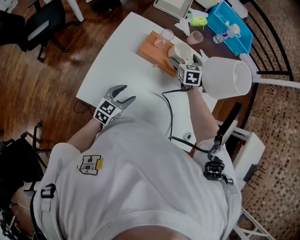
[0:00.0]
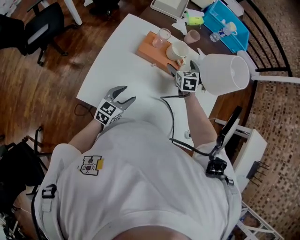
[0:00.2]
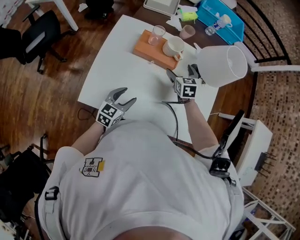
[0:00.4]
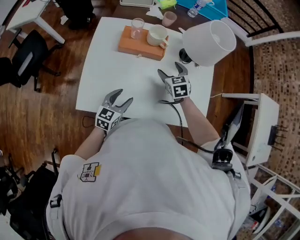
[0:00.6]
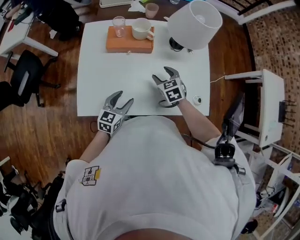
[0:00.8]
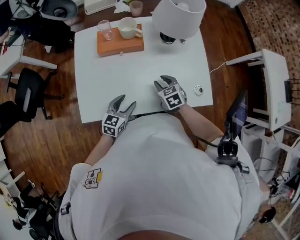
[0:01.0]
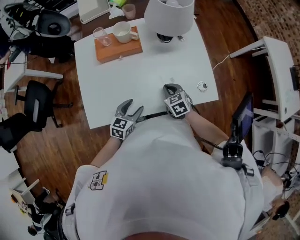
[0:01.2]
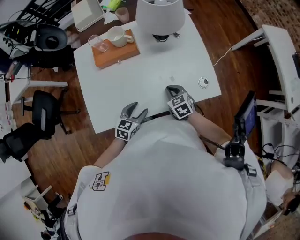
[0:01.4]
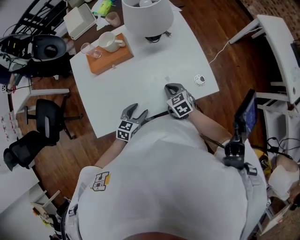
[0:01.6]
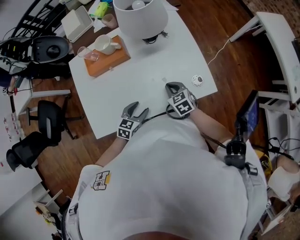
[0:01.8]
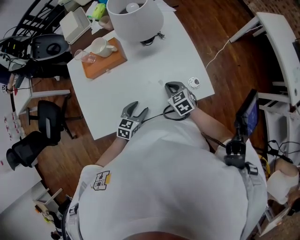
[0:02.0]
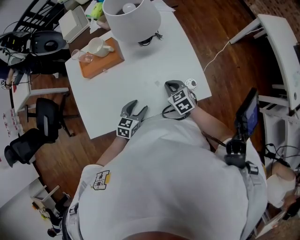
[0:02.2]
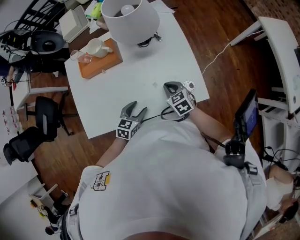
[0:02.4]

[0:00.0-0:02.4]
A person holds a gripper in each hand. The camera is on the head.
0:00.0 to 0:01.2: The left gripper is displaced to the right and backward by approximately 10 cm, and swivels approximately 20 degrees; the right gripper goes about 35 cm backward and to the right, and closes.
0:01.2 to 0:02.4: The grippers both shift to the right by roughly 10 cm.

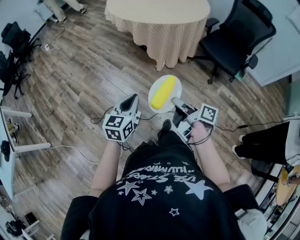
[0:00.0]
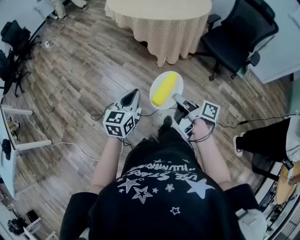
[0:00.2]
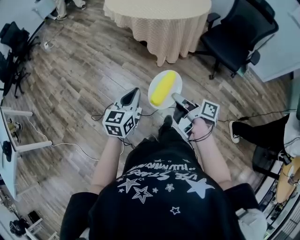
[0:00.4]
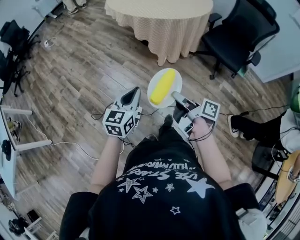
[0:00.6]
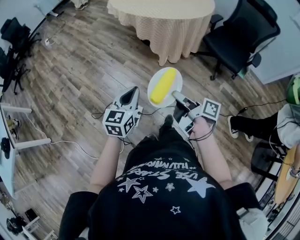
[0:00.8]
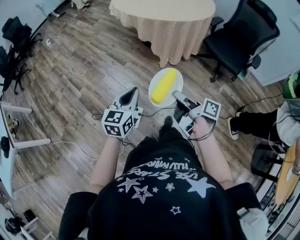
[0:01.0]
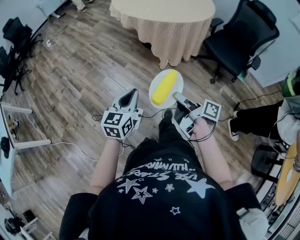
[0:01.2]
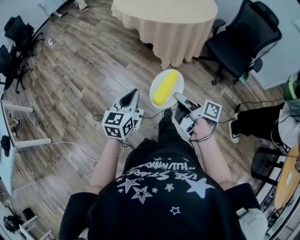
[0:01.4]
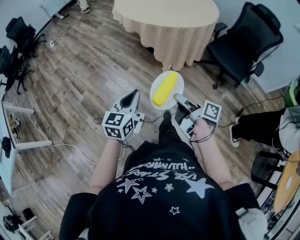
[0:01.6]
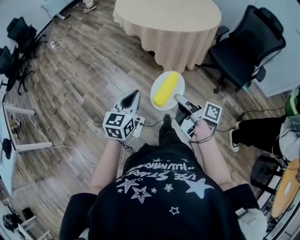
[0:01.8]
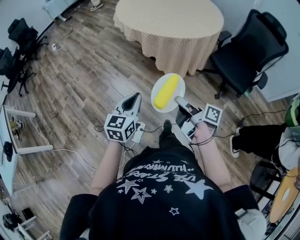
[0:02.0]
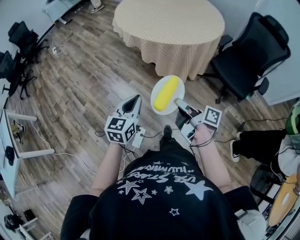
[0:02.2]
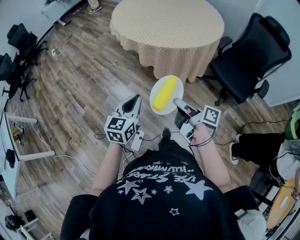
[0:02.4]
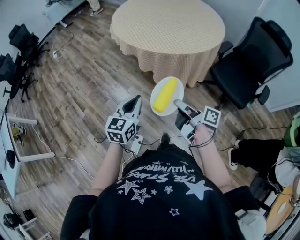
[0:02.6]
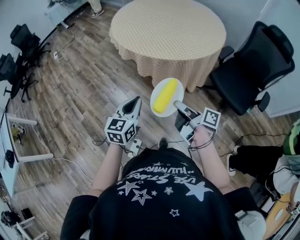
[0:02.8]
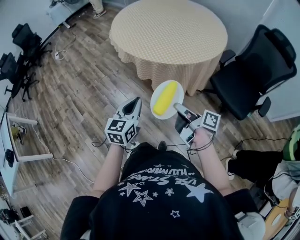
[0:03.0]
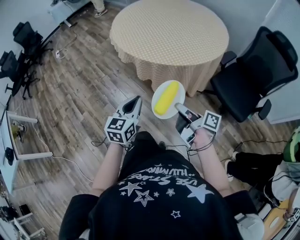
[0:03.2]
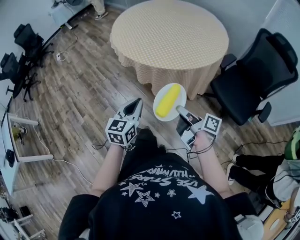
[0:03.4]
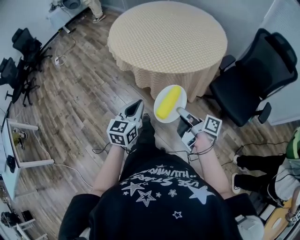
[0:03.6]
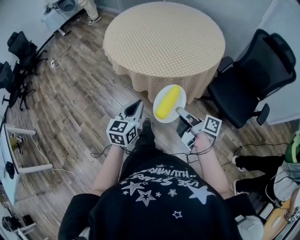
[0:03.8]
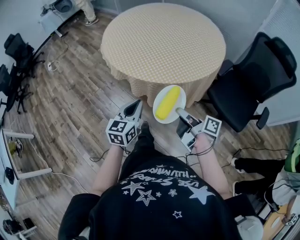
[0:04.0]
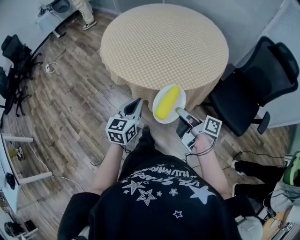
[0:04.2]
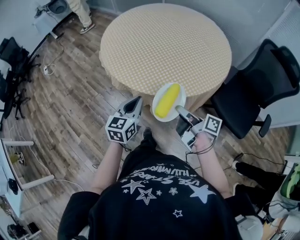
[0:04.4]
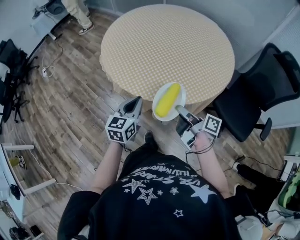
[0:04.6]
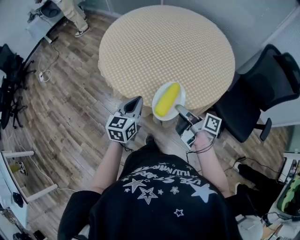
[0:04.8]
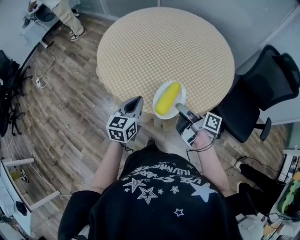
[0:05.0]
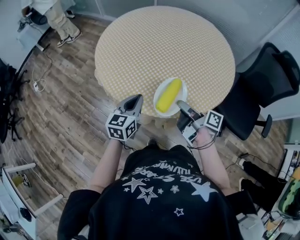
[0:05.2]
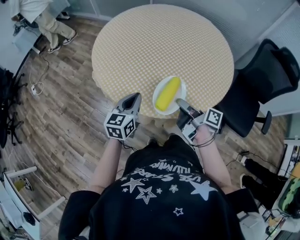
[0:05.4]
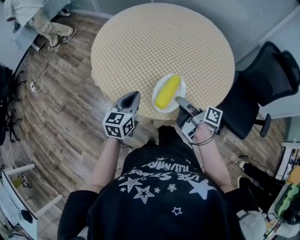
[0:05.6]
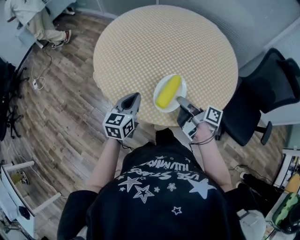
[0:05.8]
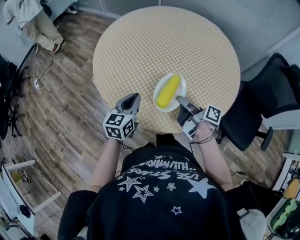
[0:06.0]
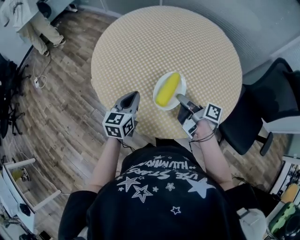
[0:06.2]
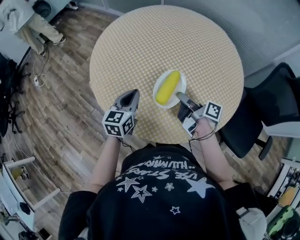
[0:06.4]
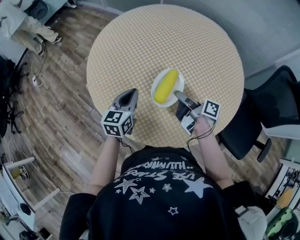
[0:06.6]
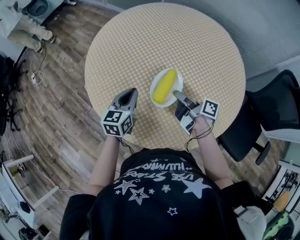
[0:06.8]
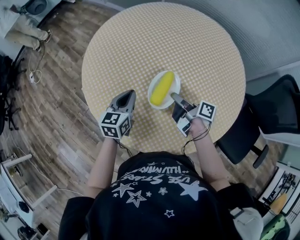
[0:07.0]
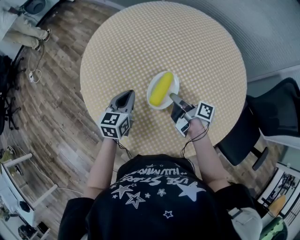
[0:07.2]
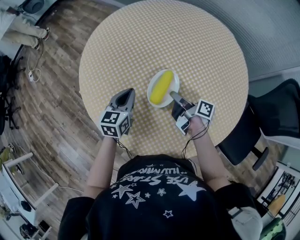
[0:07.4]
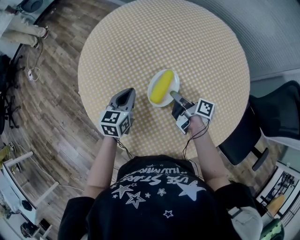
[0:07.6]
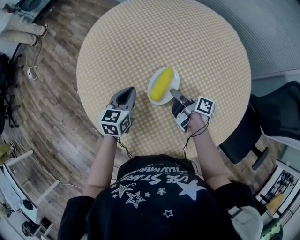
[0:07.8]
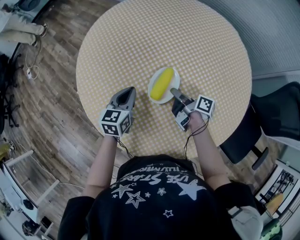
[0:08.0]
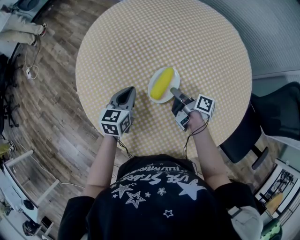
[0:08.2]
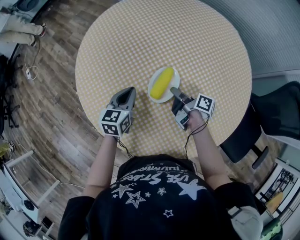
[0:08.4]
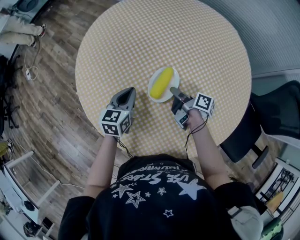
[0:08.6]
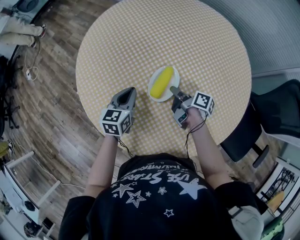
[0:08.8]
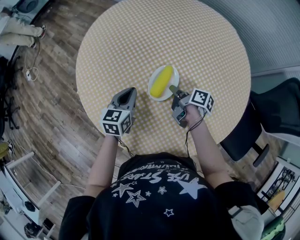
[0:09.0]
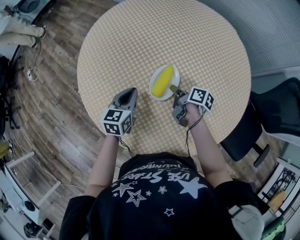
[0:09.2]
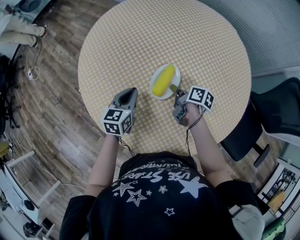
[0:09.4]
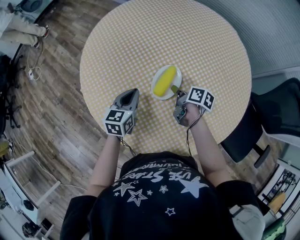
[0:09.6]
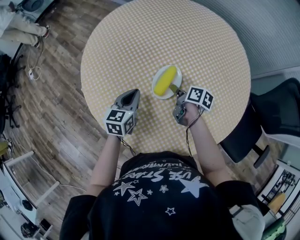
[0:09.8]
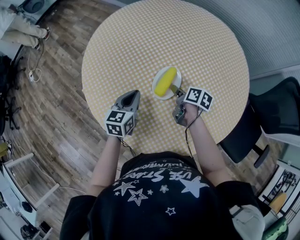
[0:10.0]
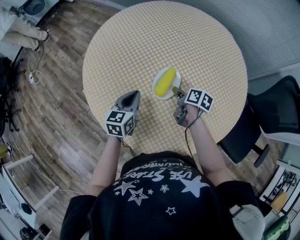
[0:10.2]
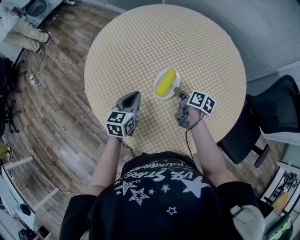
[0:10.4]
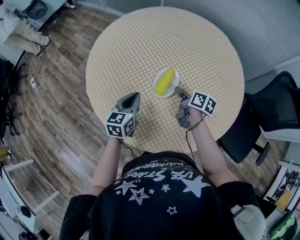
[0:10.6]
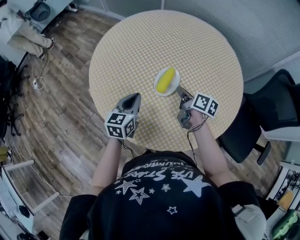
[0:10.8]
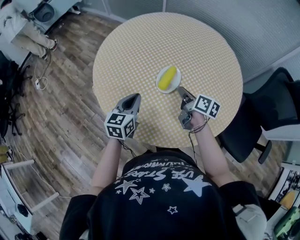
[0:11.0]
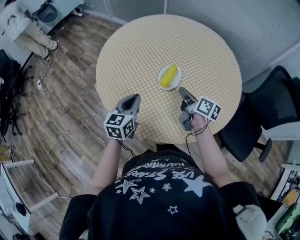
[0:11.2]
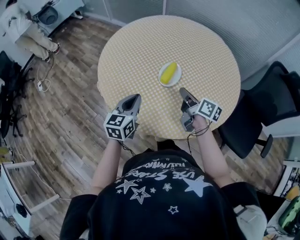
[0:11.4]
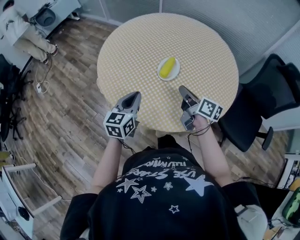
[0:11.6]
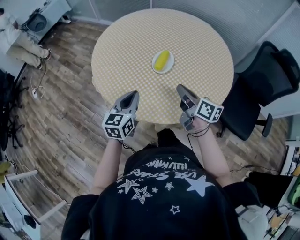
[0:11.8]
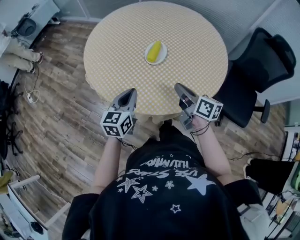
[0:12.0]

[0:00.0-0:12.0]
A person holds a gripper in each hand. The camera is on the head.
0:00.0 to 0:01.6: The left gripper ends up about 5 cm from where it was.
0:01.6 to 0:03.0: The left gripper shifts by approximately 25 cm.
0:03.0 to 0:04.4: The left gripper ends up roughly 25 cm from where it was.
0:04.4 to 0:06.0: The left gripper shifts by some 25 cm.
0:06.0 to 0:07.6: The left gripper shifts by some 20 cm.
0:10.4 to 0:12.0: The left gripper ends up some 20 cm from where it was.

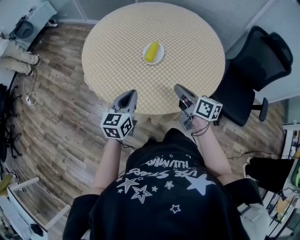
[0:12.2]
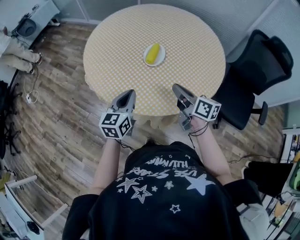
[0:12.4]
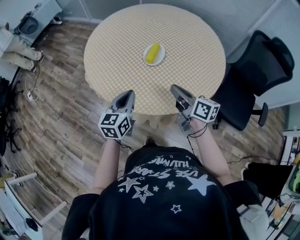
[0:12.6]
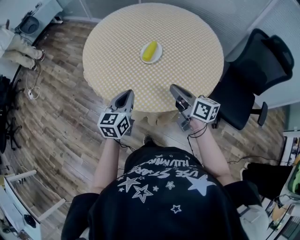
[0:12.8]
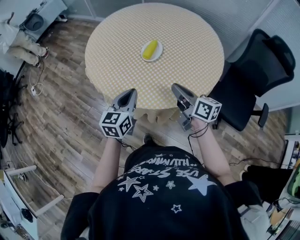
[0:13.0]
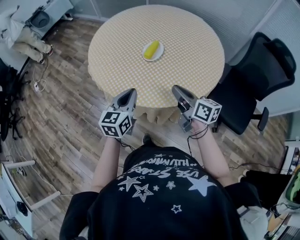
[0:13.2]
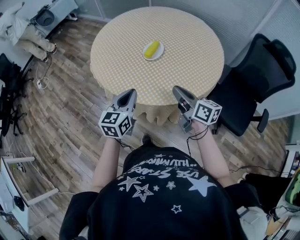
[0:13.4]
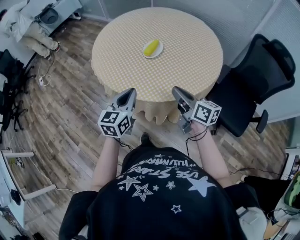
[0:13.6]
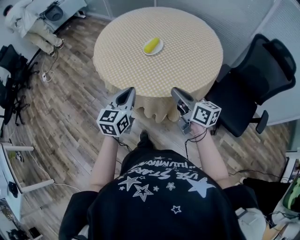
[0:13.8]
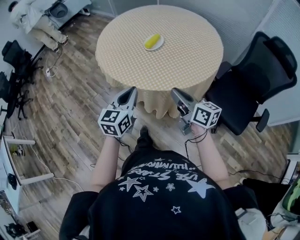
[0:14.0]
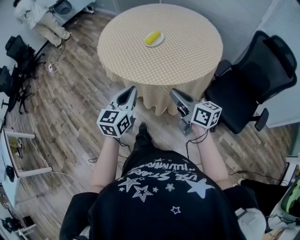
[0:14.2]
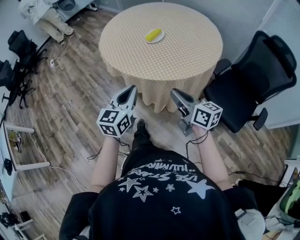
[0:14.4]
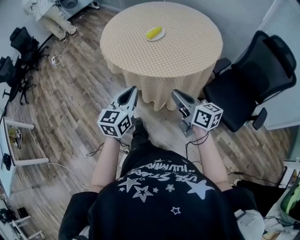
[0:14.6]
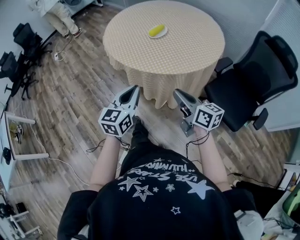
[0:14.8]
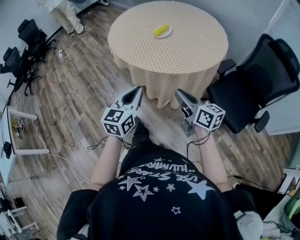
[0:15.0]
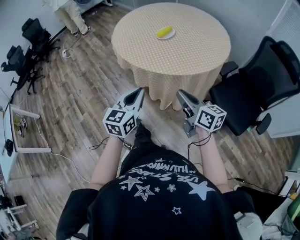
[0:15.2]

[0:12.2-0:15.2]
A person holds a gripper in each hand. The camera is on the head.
0:12.2 to 0:13.8: The left gripper shifts by about 15 cm.
0:13.8 to 0:15.2: The left gripper shifts by about 20 cm.

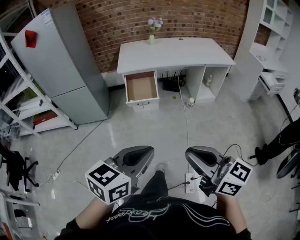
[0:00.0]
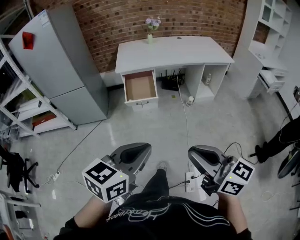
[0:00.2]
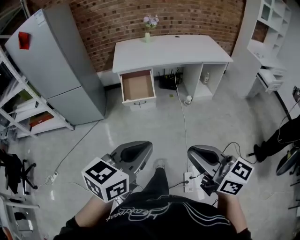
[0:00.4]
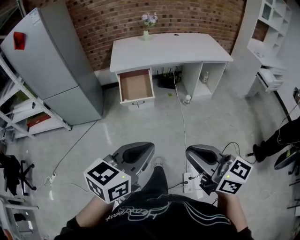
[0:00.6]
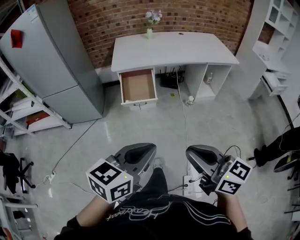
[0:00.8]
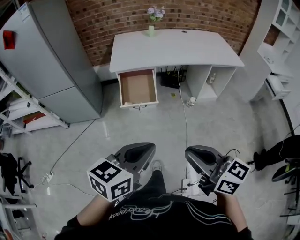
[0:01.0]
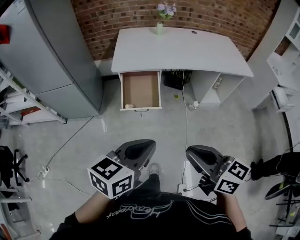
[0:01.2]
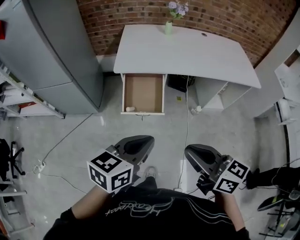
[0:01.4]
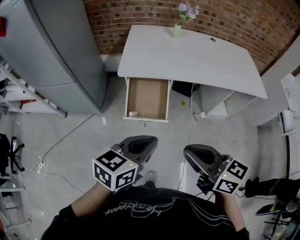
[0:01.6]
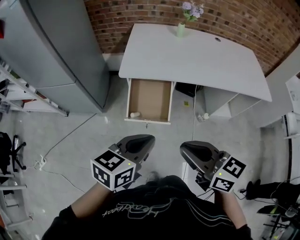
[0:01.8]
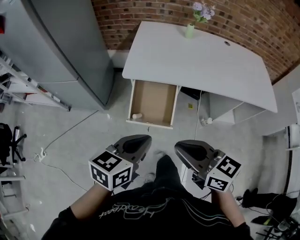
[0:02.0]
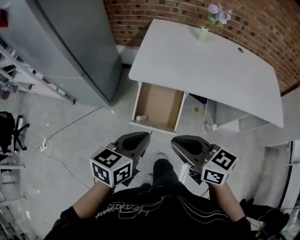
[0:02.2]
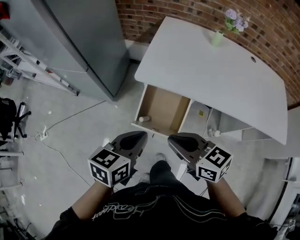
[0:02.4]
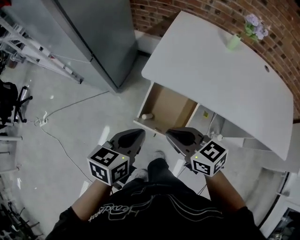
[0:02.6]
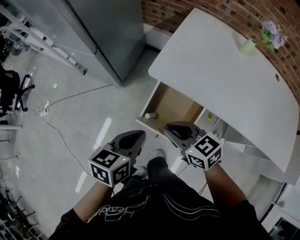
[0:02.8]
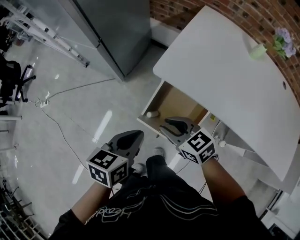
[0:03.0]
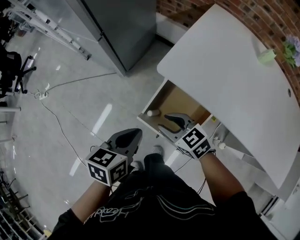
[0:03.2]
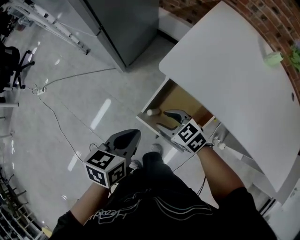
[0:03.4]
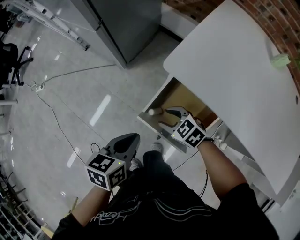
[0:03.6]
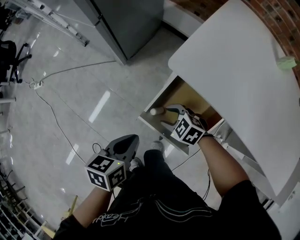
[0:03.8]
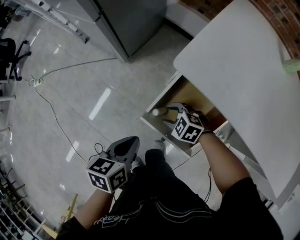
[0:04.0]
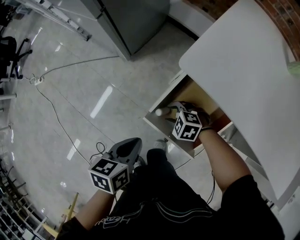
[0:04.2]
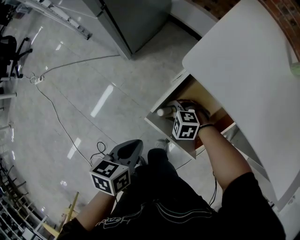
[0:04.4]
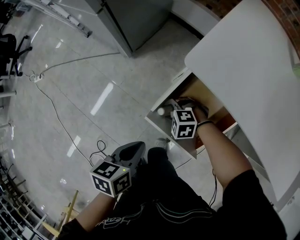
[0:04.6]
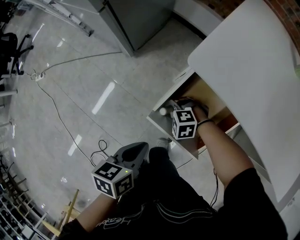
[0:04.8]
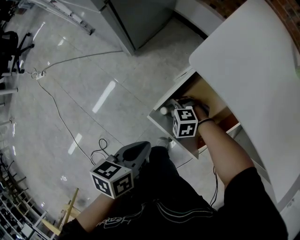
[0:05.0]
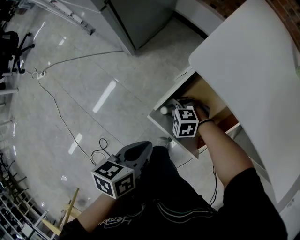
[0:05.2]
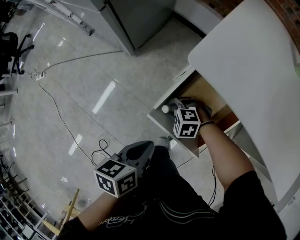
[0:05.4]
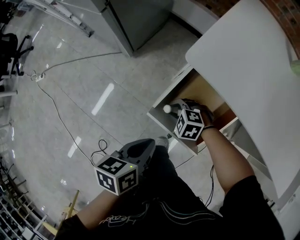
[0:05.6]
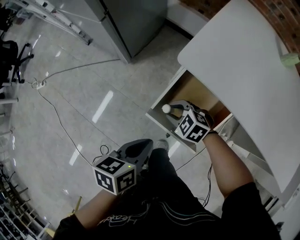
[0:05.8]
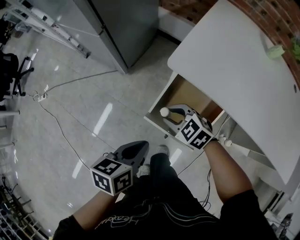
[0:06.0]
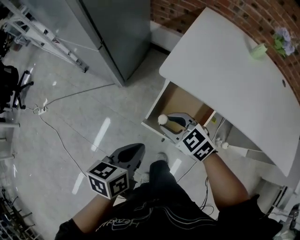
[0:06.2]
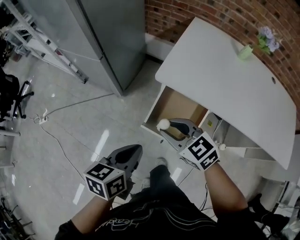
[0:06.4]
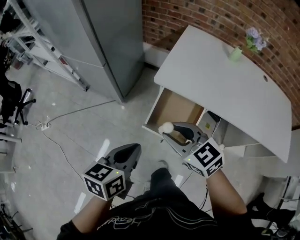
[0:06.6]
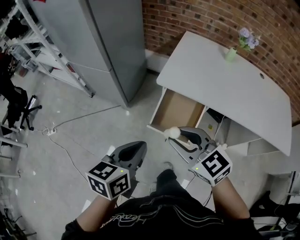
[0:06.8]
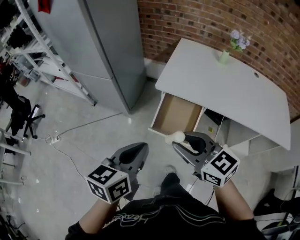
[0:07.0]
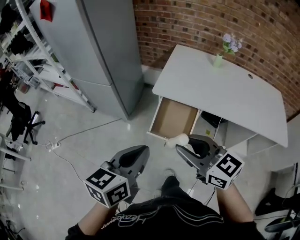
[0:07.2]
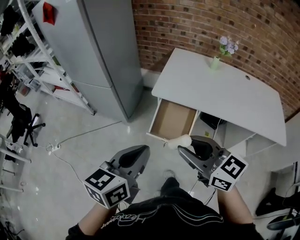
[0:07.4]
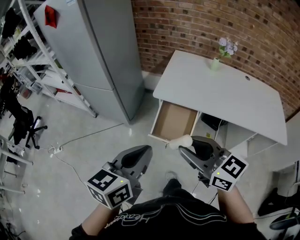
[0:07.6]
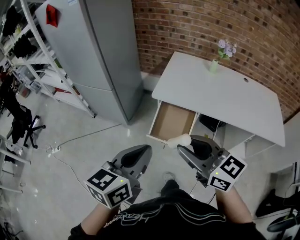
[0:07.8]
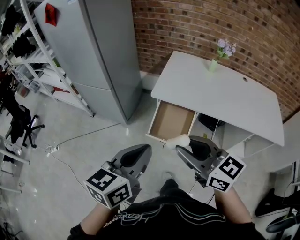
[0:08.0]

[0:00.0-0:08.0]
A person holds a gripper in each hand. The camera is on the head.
0:00.0 to 0:01.6: The pair of grippers is taken forward, some 50 cm.
0:01.6 to 0:03.2: The left gripper moves roughly 35 cm, and swivels some 50 degrees. Meanwhile the right gripper moves roughly 50 cm, changes its angle by approximately 50 degrees, and opens its fingers.
0:03.2 to 0:04.8: The right gripper shifts roughly 25 cm downward, and points its fingers roughly 30 degrees further downward; the left gripper travels downward by roughly 15 cm.
0:04.8 to 0:06.4: The right gripper moves upward, some 35 cm, and tips its fingers upward by roughly 40 degrees. Meanwhile the left gripper goes some 20 cm upward, and swivels roughly 20 degrees.
0:06.4 to 0:08.0: The left gripper shifts about 30 cm upward and backward, and changes its angle by about 30 degrees. The right gripper is displaced backward and upward by about 35 cm, and turns by about 30 degrees.
